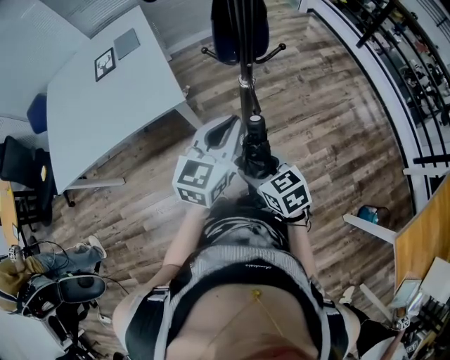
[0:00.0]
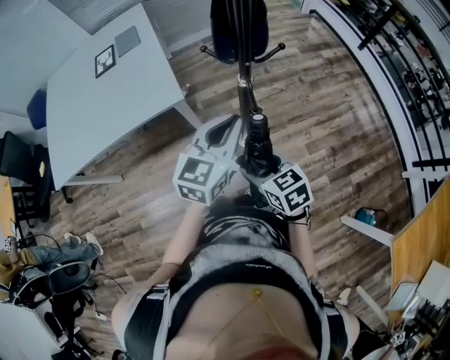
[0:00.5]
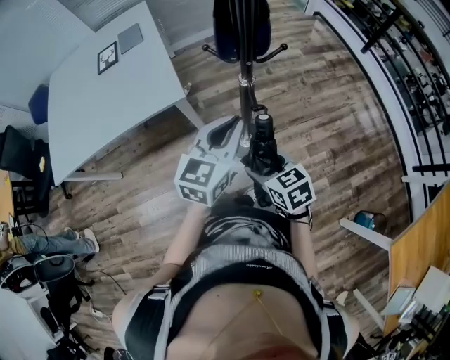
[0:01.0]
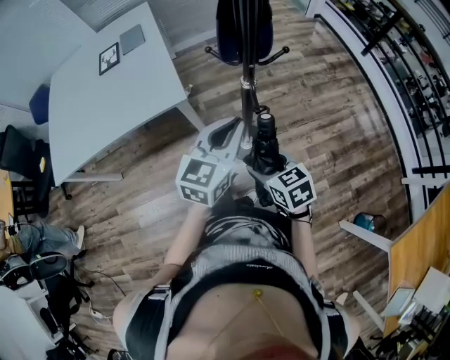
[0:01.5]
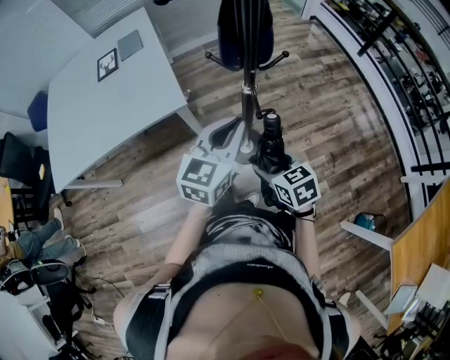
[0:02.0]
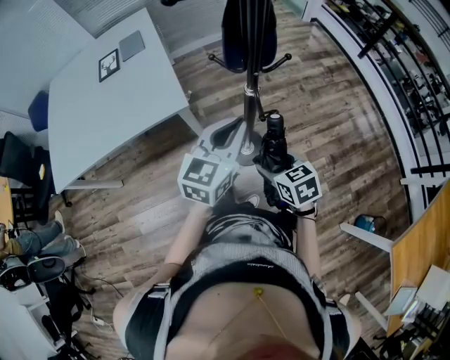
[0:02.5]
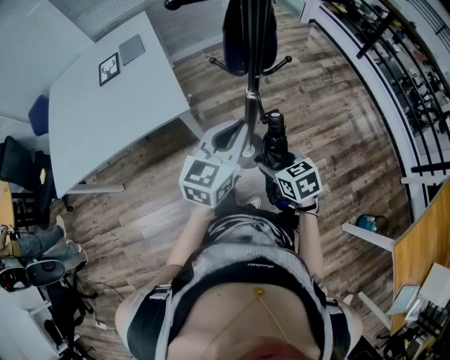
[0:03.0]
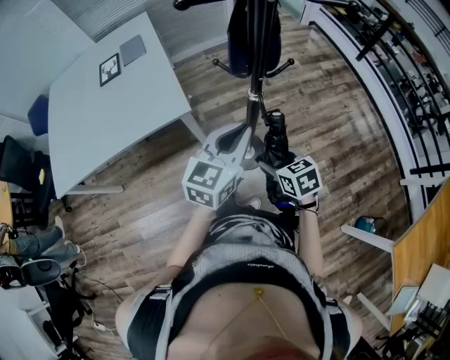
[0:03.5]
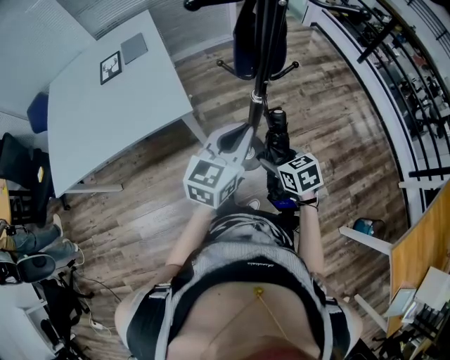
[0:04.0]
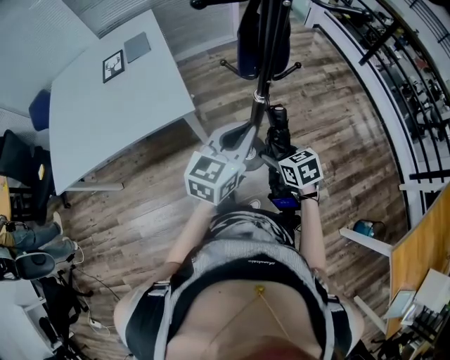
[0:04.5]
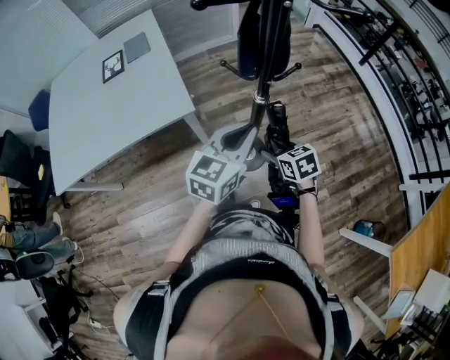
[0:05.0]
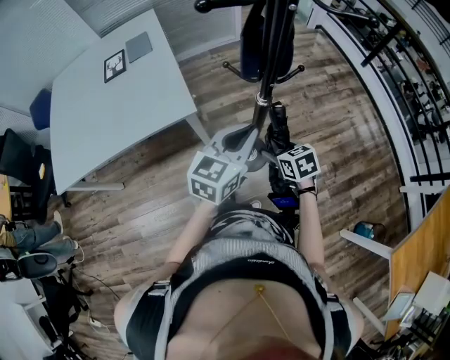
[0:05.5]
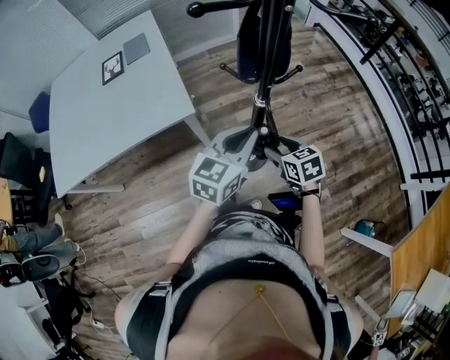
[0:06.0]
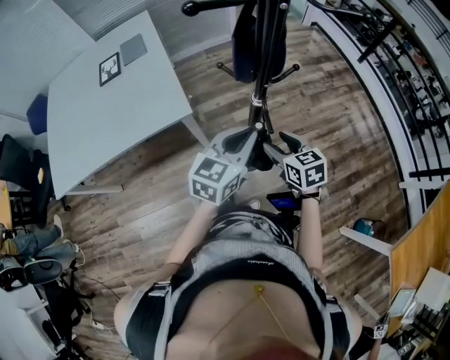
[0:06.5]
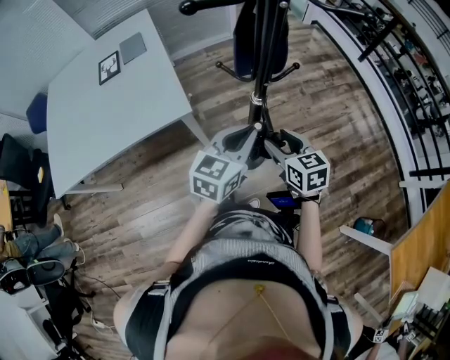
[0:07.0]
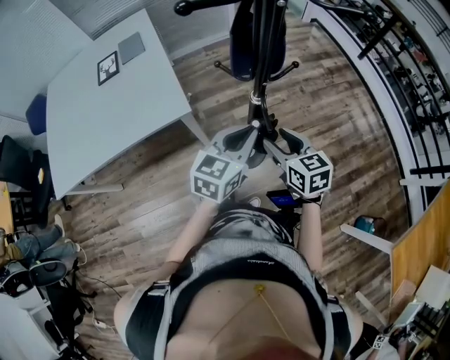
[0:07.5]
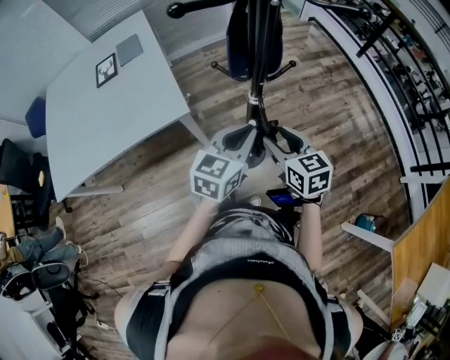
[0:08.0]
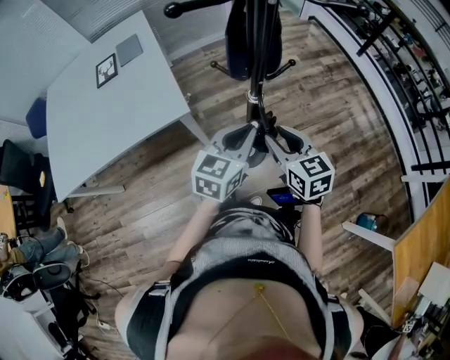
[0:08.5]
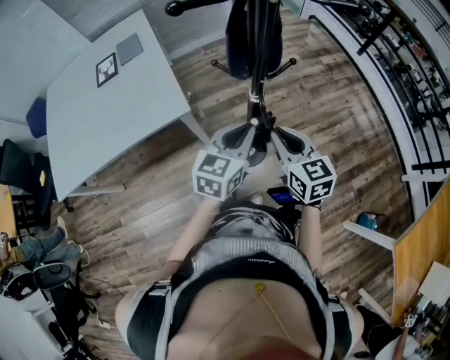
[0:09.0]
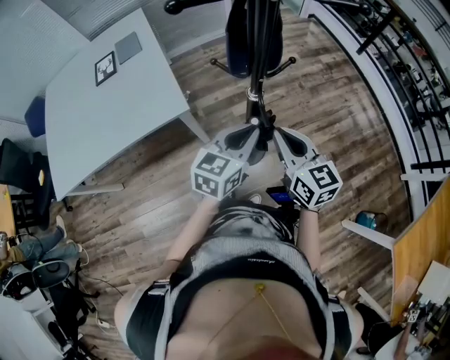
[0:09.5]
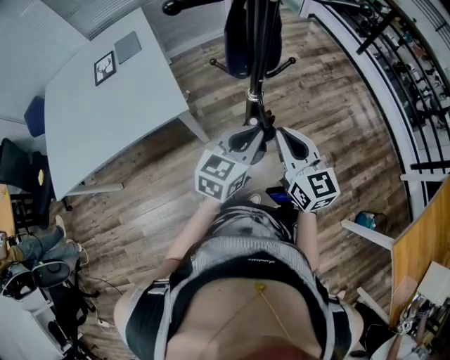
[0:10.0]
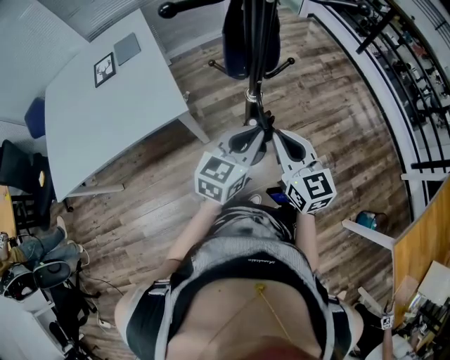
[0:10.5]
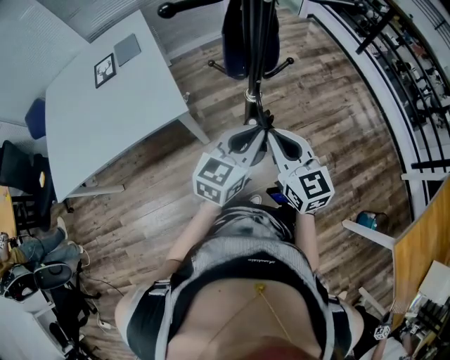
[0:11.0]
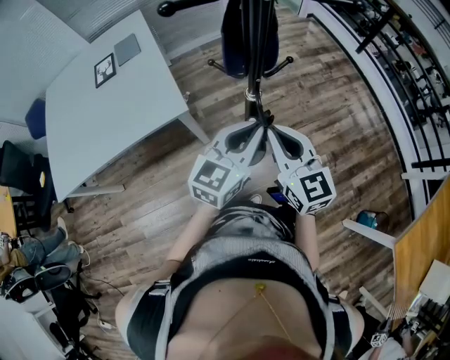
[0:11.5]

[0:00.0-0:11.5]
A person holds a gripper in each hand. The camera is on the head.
0:00.0 to 0:02.0: The right gripper changes place by some 5 cm.
0:02.0 to 0:04.0: The right gripper changes place by some 5 cm.
0:04.0 to 0:06.0: The grippers make only small movements.
0:06.0 to 0:07.5: The right gripper shifts roughly 5 cm upward.
0:07.5 to 0:09.5: The right gripper heads upward, covering about 5 cm, and closes.
0:09.5 to 0:11.5: The left gripper heads upward, covering approximately 5 cm.

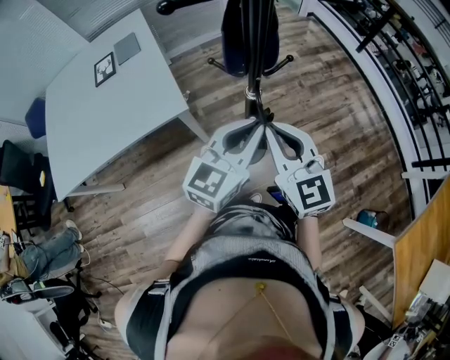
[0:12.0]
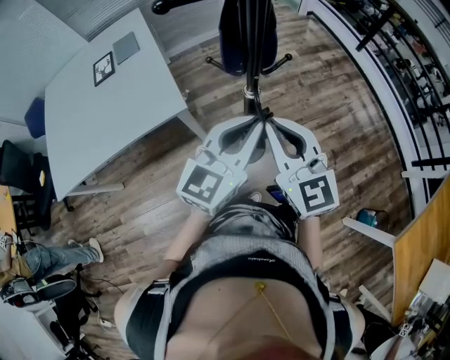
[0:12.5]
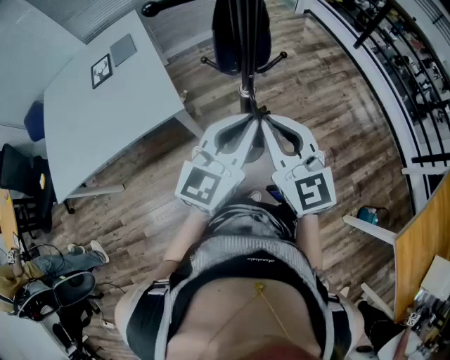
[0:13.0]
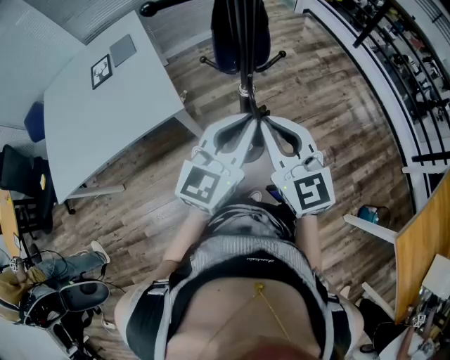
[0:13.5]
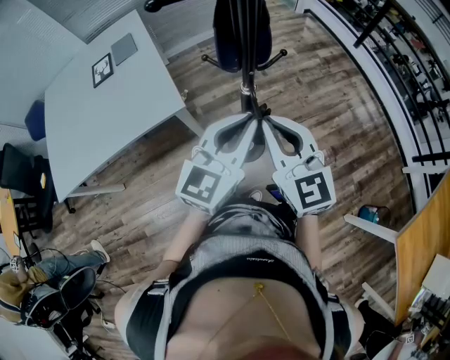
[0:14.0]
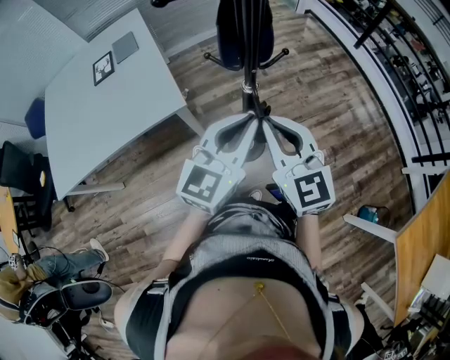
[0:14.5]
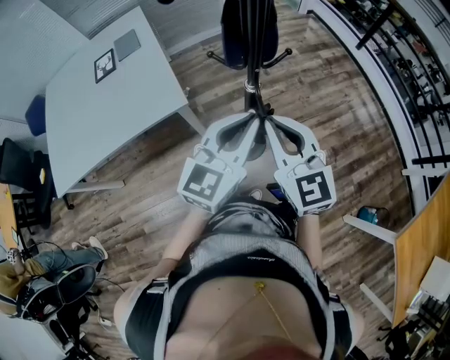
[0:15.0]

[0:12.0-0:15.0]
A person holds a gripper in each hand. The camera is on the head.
0:12.0 to 0:15.0: The grippers move only a little.

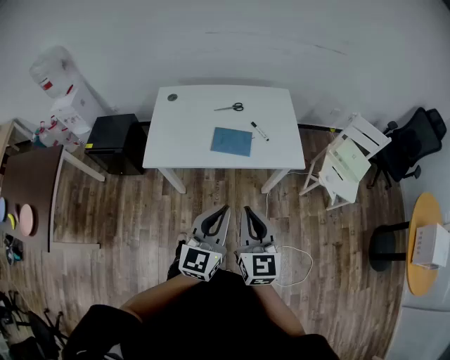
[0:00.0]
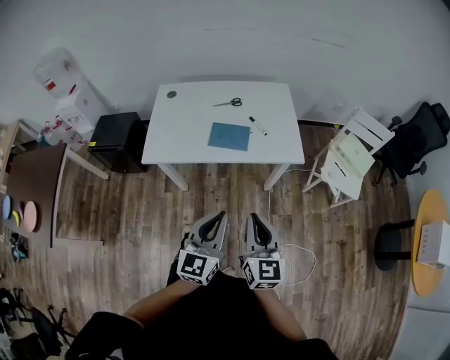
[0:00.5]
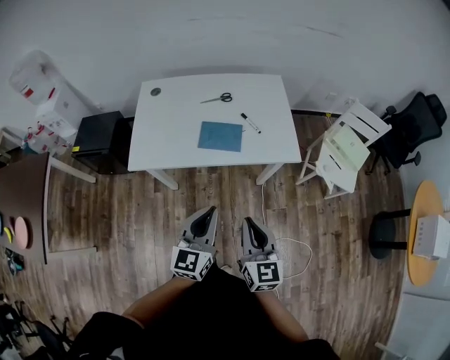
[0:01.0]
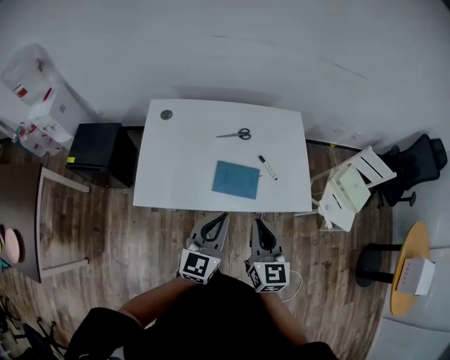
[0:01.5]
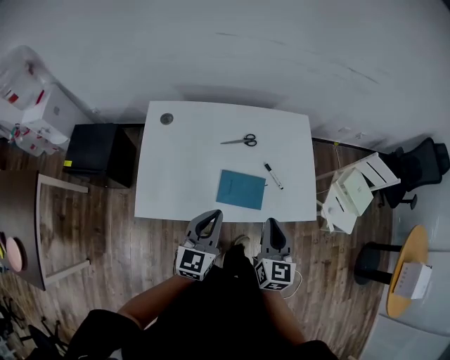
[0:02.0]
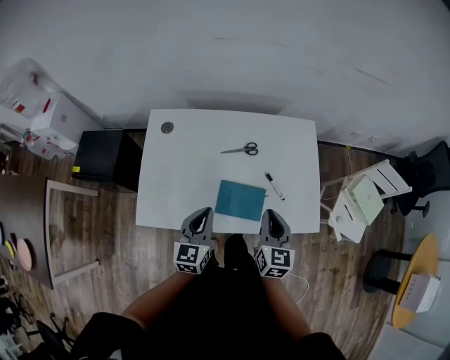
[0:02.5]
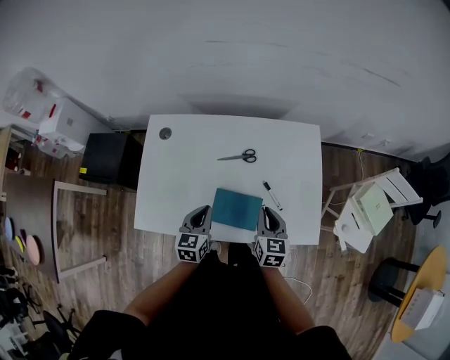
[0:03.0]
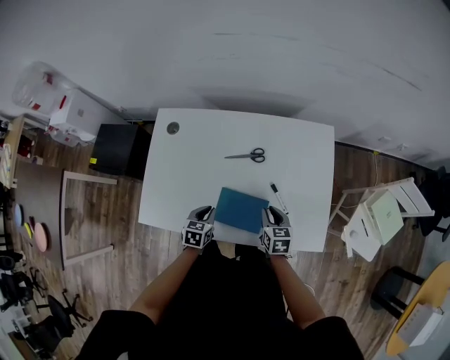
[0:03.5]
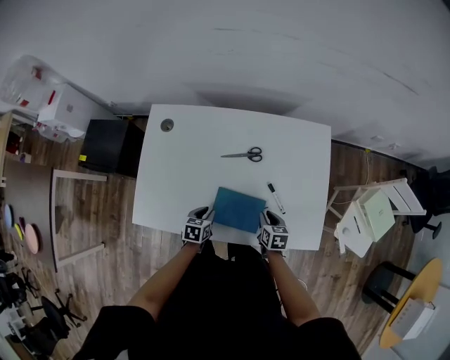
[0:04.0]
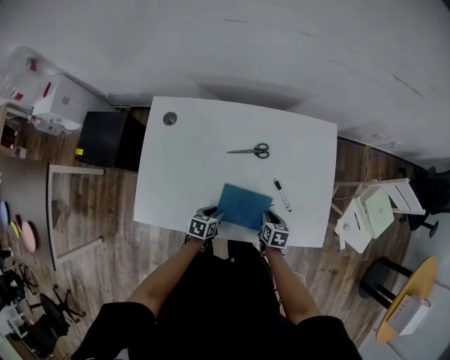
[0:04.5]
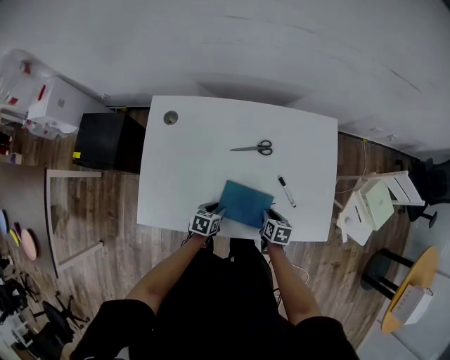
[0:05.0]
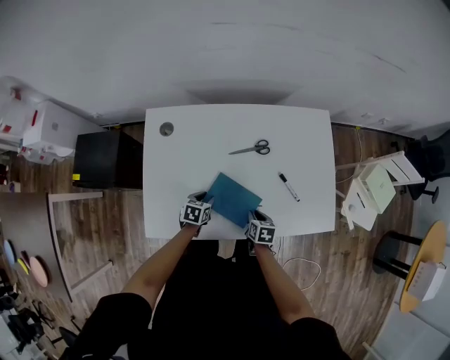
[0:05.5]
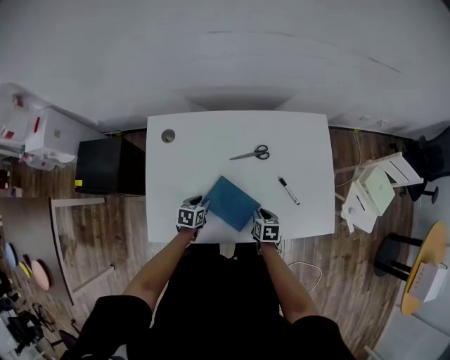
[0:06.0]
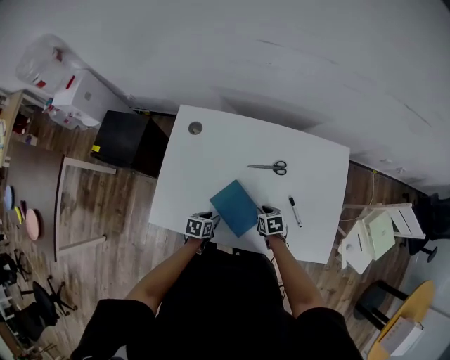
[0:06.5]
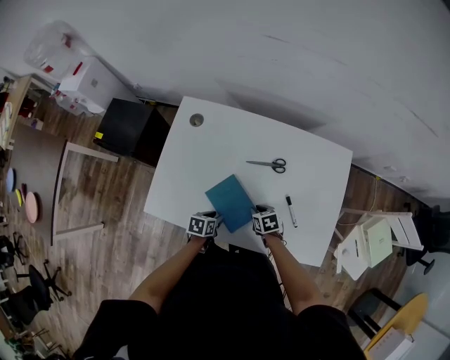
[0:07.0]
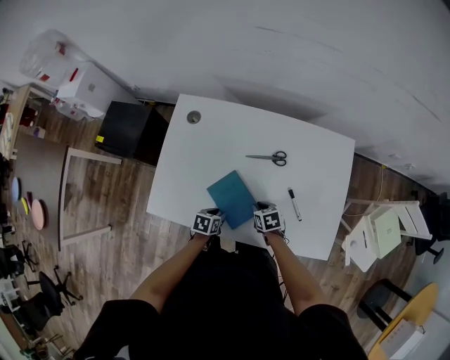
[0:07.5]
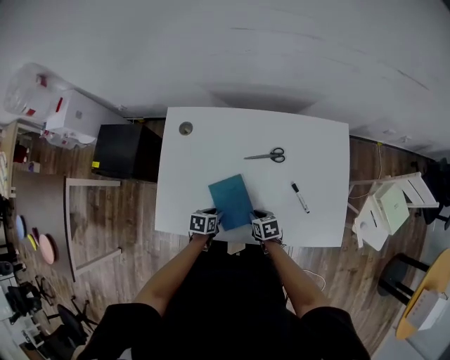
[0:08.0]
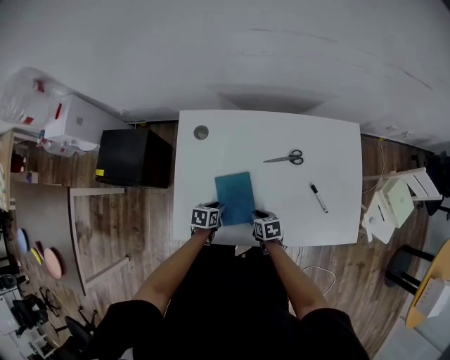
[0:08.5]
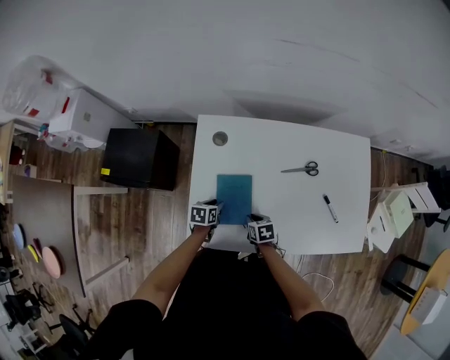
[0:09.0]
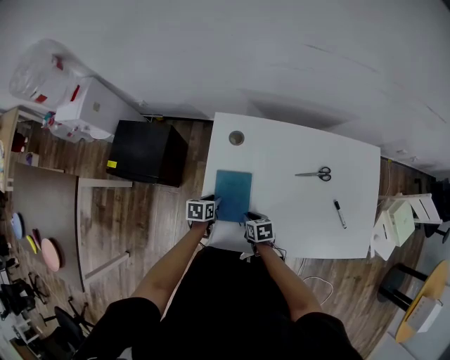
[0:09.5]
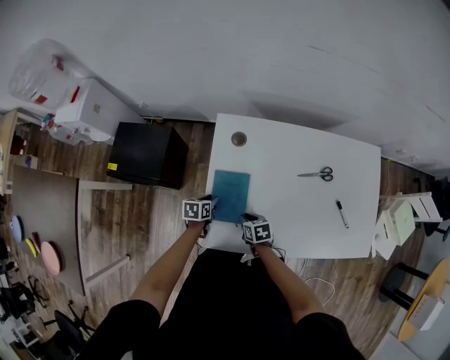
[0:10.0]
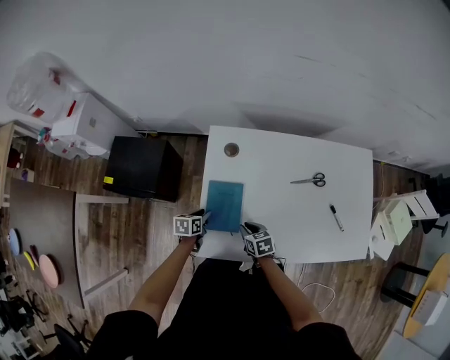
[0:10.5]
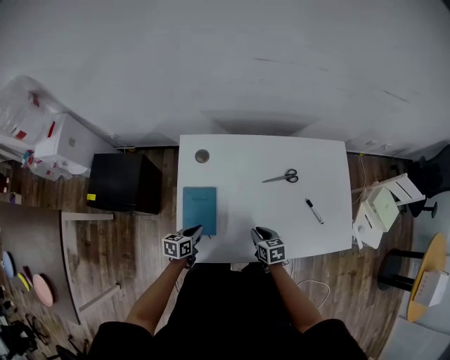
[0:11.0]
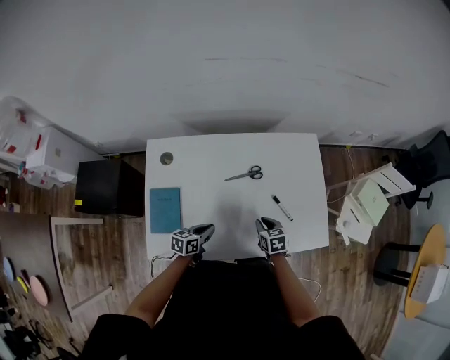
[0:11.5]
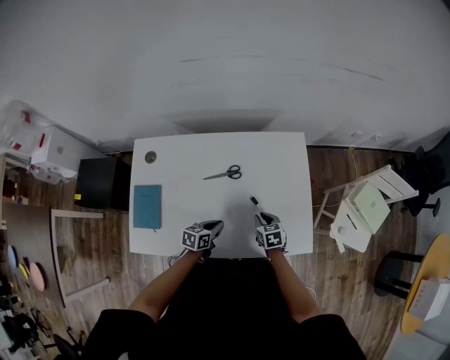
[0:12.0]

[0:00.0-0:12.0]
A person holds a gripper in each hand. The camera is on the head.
0:00.0 to 0:02.0: The right gripper travels forward by about 30 cm. The left gripper shifts some 35 cm forward and to the left.
0:02.0 to 0:04.0: The right gripper is displaced downward and forward by approximately 35 cm, and points its fingers roughly 30 degrees further downward, while the left gripper moves downward, approximately 30 cm, and points its fingers approximately 40 degrees further downward.
0:04.0 to 0:06.0: The two grippers go approximately 10 cm to the left.
0:06.0 to 0:08.0: The left gripper is displaced backward by approximately 5 cm; the right gripper moves to the left, some 5 cm, and changes its angle by some 20 degrees.
0:08.0 to 0:10.0: The left gripper heads to the left and forward, covering some 30 cm; the right gripper shifts about 25 cm to the left.
0:10.0 to 0:12.0: The pair of grippers is taken approximately 40 cm. The left gripper swivels roughly 20 degrees, and closes up.
